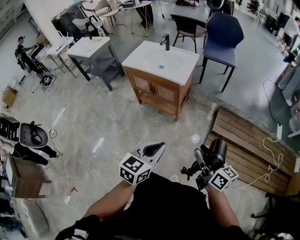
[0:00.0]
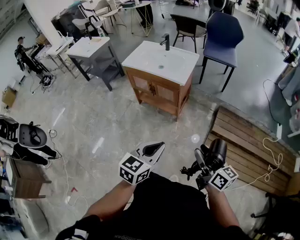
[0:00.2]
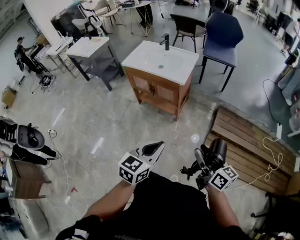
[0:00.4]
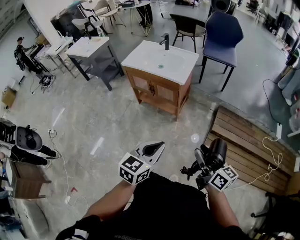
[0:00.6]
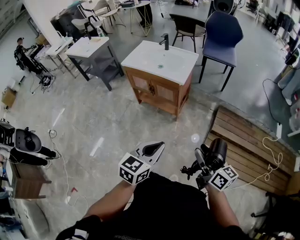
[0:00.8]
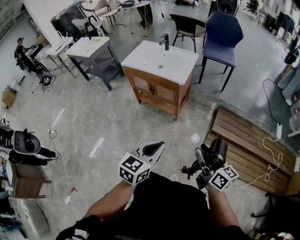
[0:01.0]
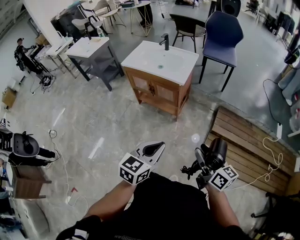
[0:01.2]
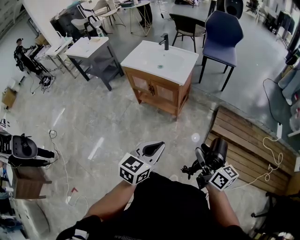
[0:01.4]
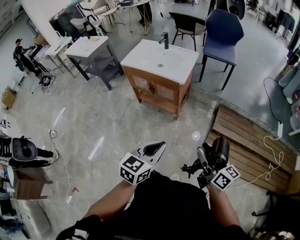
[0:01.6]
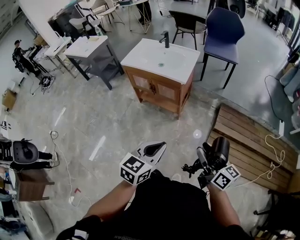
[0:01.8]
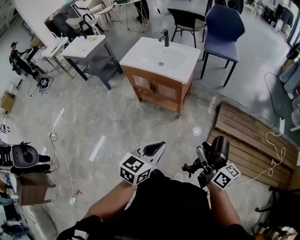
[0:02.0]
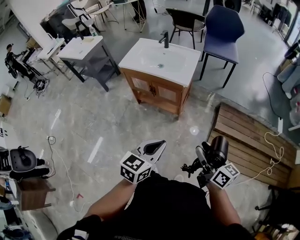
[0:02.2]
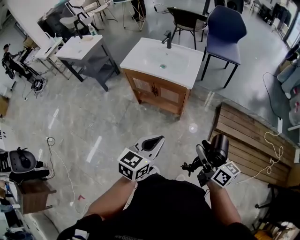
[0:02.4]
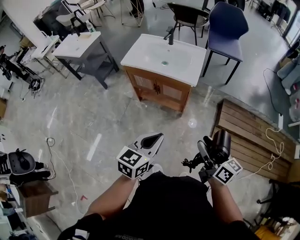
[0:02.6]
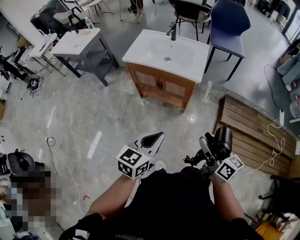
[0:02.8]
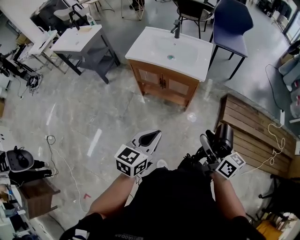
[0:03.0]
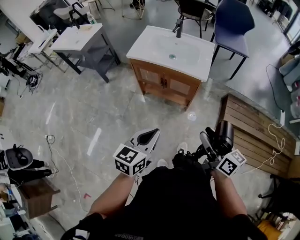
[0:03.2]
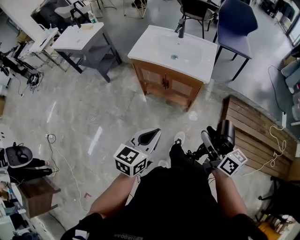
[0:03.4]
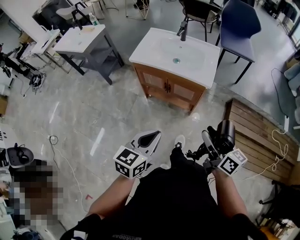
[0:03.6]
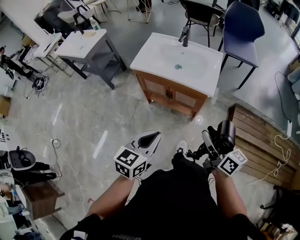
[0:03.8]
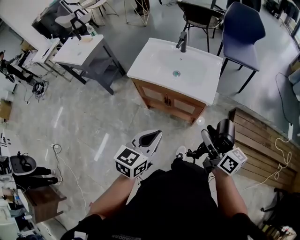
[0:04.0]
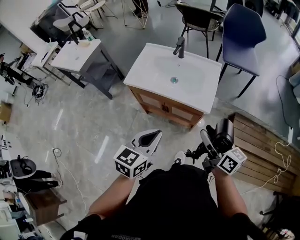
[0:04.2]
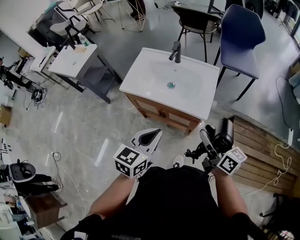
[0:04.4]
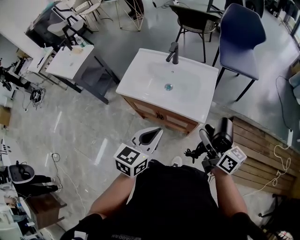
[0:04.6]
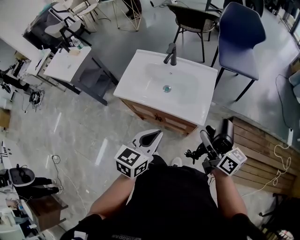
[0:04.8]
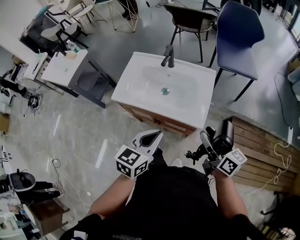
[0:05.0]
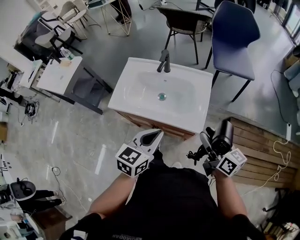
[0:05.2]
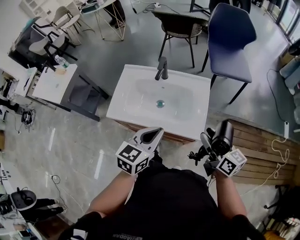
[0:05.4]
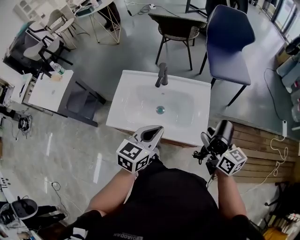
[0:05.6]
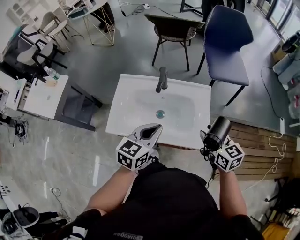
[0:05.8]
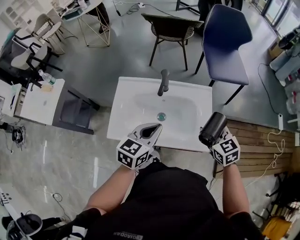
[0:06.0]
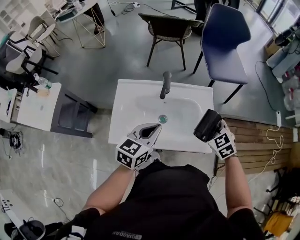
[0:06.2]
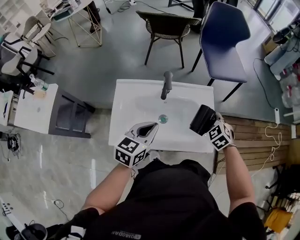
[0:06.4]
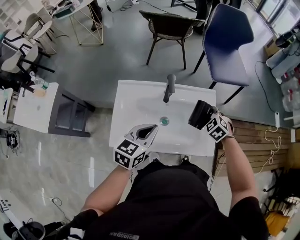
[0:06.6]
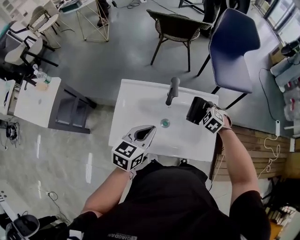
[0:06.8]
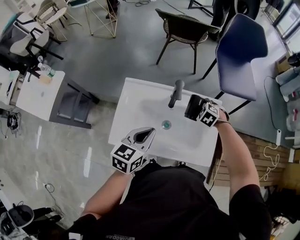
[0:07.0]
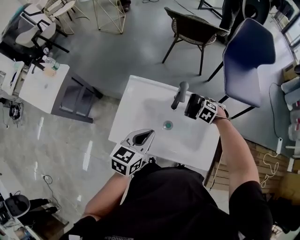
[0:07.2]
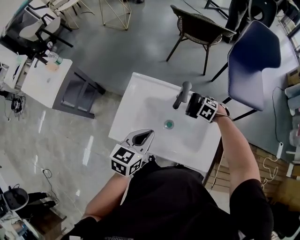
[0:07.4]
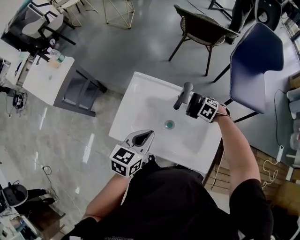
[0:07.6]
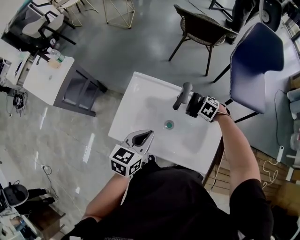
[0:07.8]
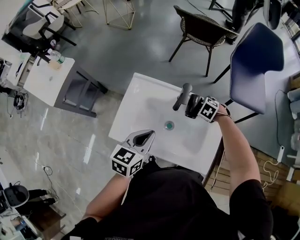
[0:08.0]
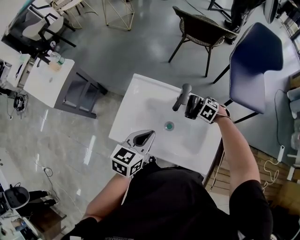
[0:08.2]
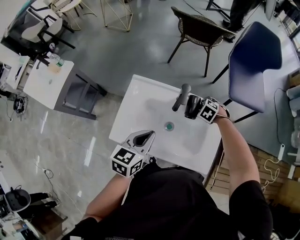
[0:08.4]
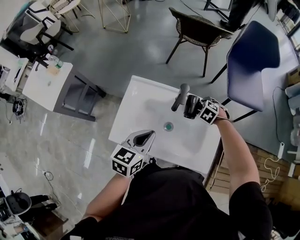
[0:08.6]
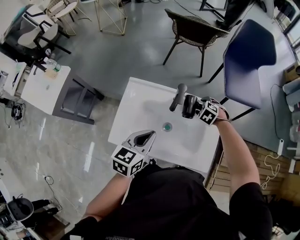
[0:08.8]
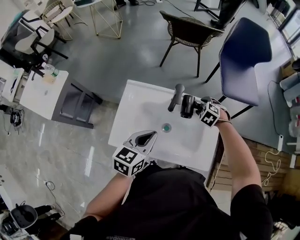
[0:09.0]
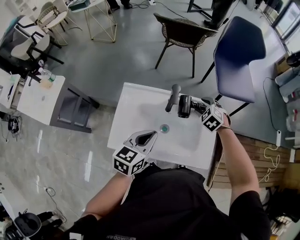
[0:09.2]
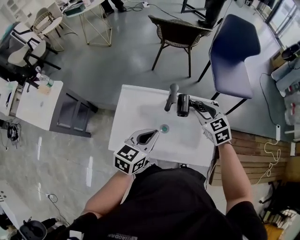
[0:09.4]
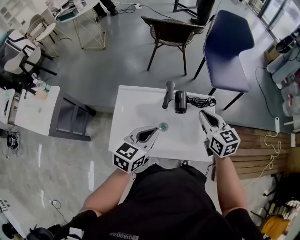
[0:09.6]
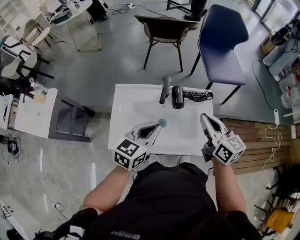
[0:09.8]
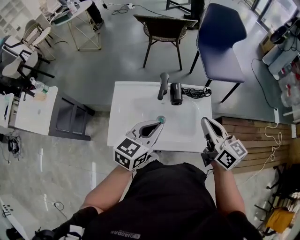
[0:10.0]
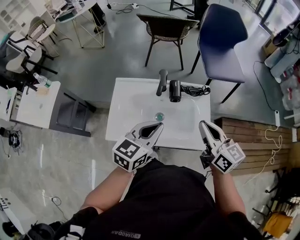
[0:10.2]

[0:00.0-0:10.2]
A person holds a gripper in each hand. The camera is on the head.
0:00.0 to 0:01.4: Both grippers stay about where they are.
0:01.4 to 0:03.0: The grippers both shift to the left and forward by some 25 cm.
0:03.0 to 0:04.4: Both grippers travel together forward, some 25 cm.
0:04.4 to 0:05.8: Both grippers travel together forward, about 25 cm. The right gripper turns by some 30 degrees.
0:05.8 to 0:07.2: The left gripper moves roughly 10 cm; the right gripper ends up about 35 cm from where it was, and tips its fingers downward by approximately 50 degrees.
0:07.2 to 0:08.8: The right gripper opens.
0:08.8 to 0:10.2: The left gripper goes about 10 cm to the right and upward. The right gripper goes about 35 cm upward and backward, tips its fingers upward by about 60 degrees, and closes up.

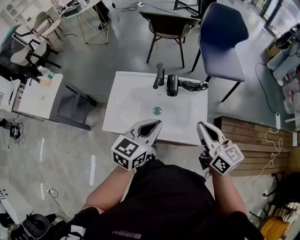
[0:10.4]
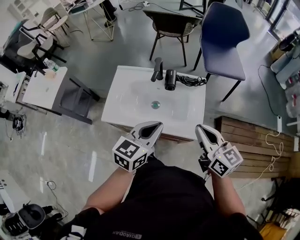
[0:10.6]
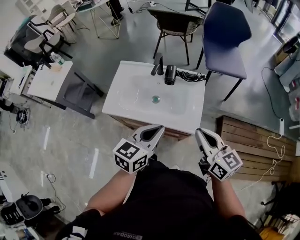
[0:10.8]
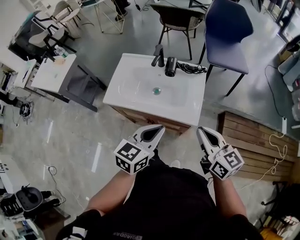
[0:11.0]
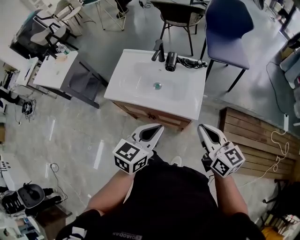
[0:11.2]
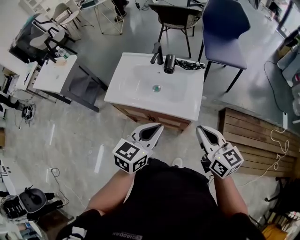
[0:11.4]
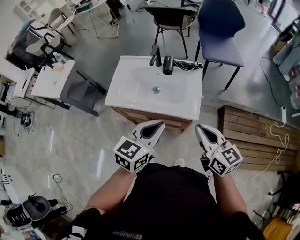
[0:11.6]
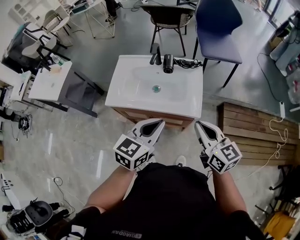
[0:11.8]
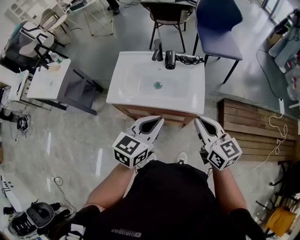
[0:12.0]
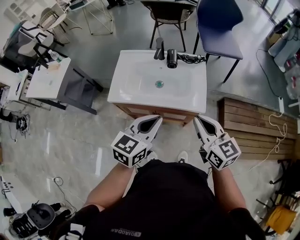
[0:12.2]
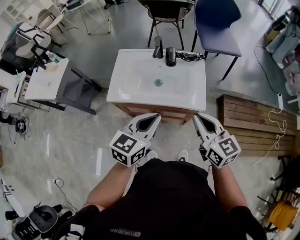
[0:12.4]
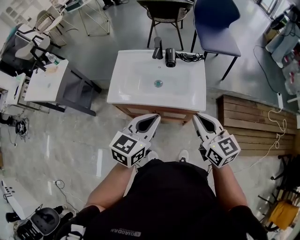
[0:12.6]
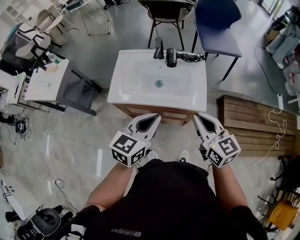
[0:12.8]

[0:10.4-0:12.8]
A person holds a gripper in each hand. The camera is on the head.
0:10.4 to 0:11.6: The right gripper shifts about 15 cm backward, while the left gripper is displaced backward and to the right by about 20 cm.
0:11.6 to 0:12.8: The grippers both shift to the left by roughly 10 cm.

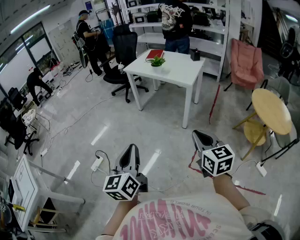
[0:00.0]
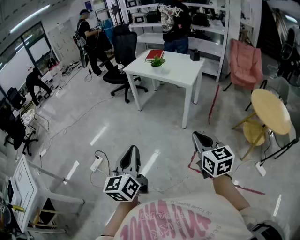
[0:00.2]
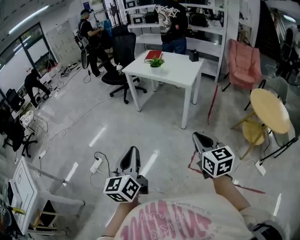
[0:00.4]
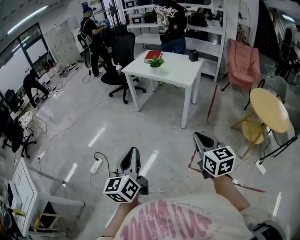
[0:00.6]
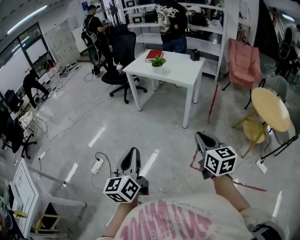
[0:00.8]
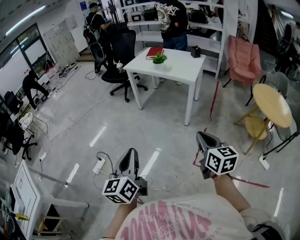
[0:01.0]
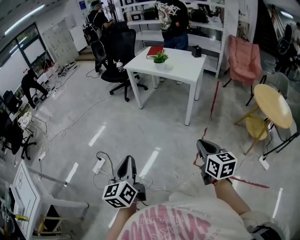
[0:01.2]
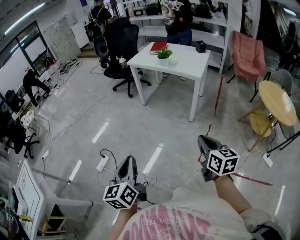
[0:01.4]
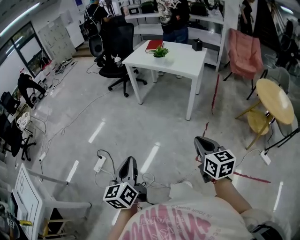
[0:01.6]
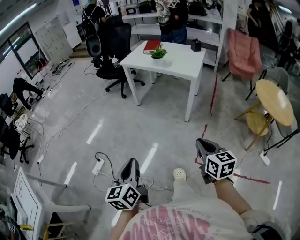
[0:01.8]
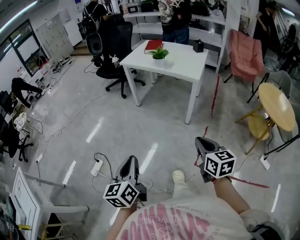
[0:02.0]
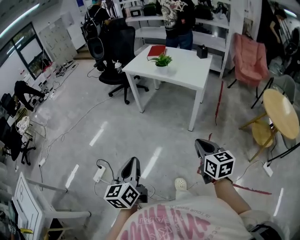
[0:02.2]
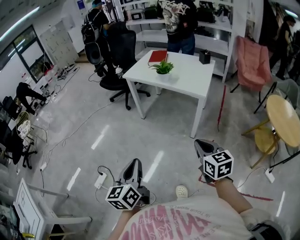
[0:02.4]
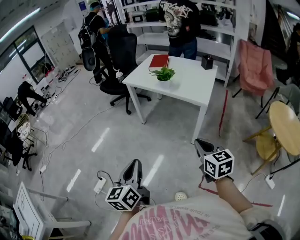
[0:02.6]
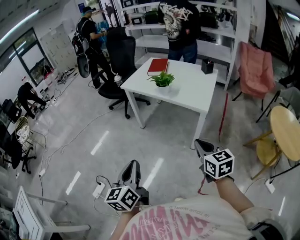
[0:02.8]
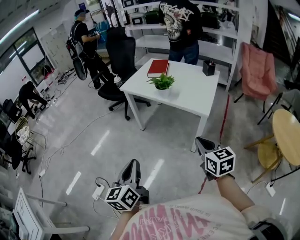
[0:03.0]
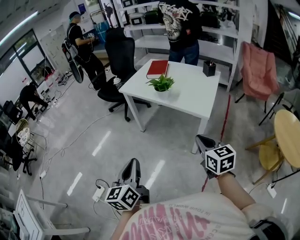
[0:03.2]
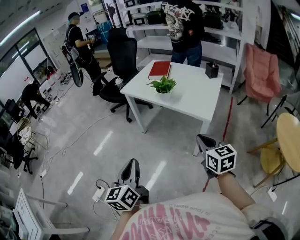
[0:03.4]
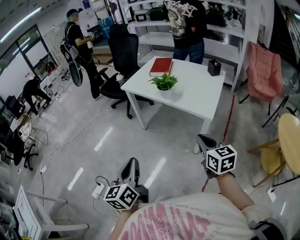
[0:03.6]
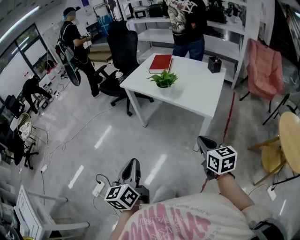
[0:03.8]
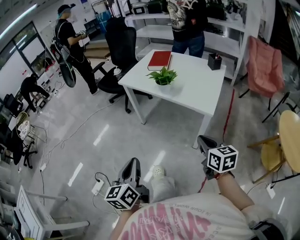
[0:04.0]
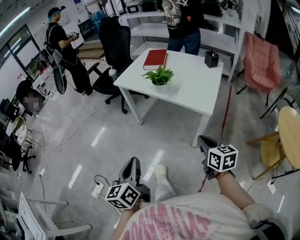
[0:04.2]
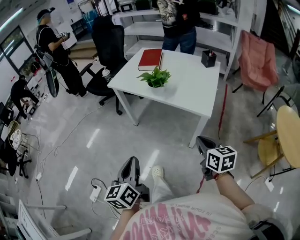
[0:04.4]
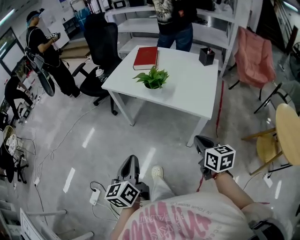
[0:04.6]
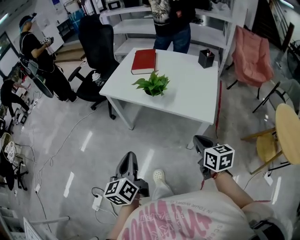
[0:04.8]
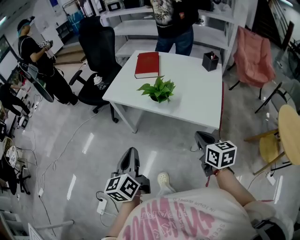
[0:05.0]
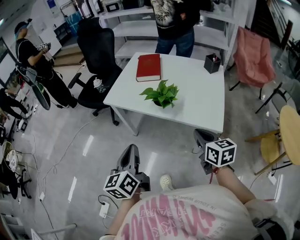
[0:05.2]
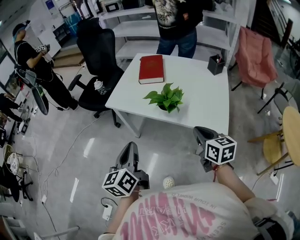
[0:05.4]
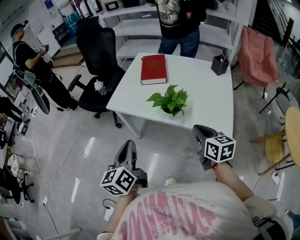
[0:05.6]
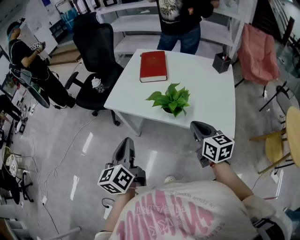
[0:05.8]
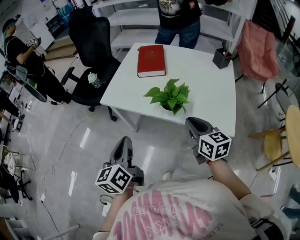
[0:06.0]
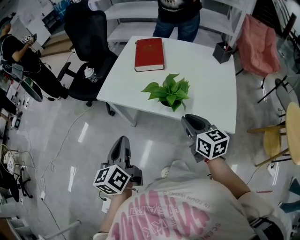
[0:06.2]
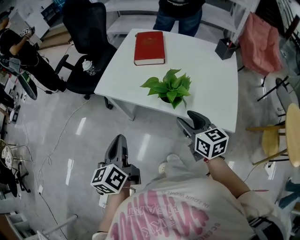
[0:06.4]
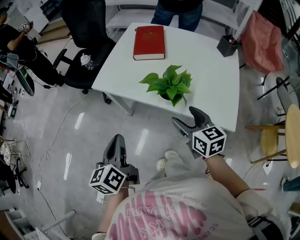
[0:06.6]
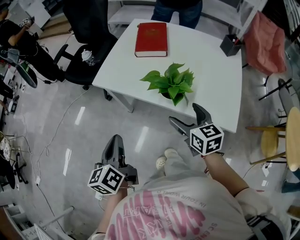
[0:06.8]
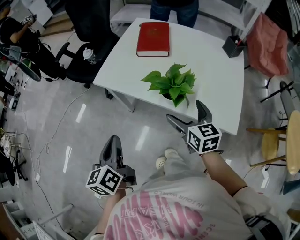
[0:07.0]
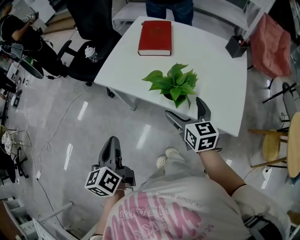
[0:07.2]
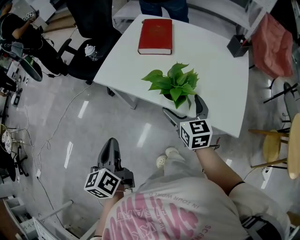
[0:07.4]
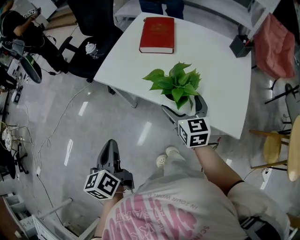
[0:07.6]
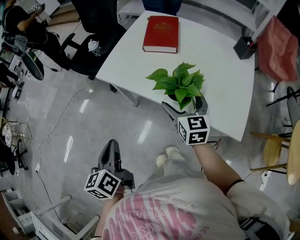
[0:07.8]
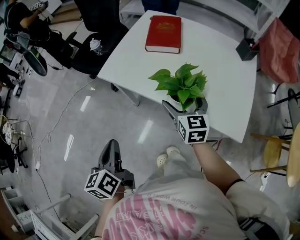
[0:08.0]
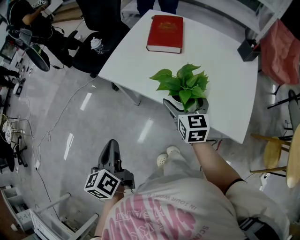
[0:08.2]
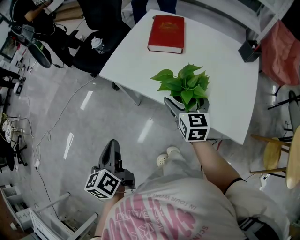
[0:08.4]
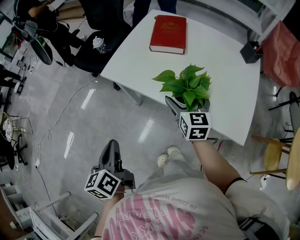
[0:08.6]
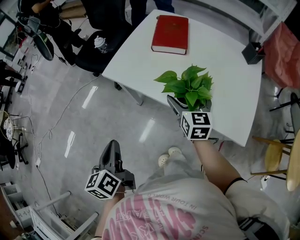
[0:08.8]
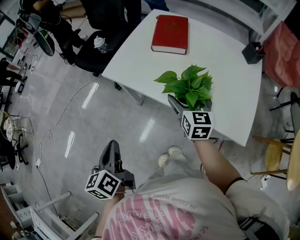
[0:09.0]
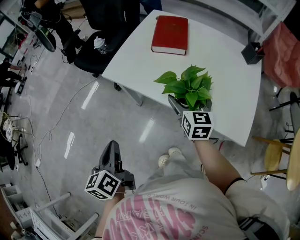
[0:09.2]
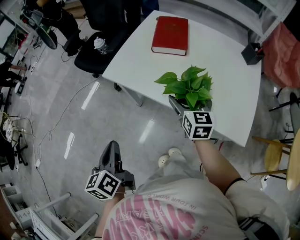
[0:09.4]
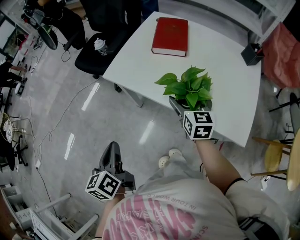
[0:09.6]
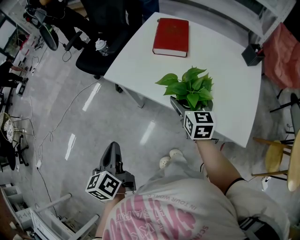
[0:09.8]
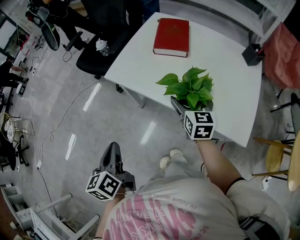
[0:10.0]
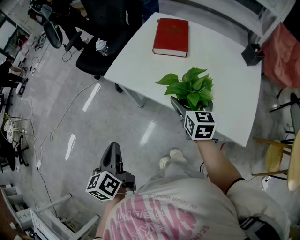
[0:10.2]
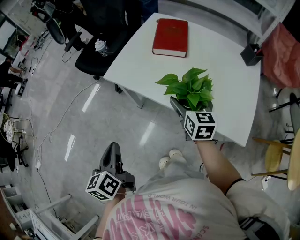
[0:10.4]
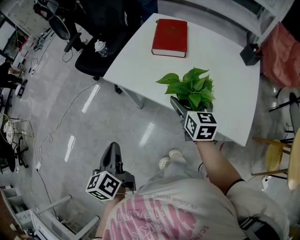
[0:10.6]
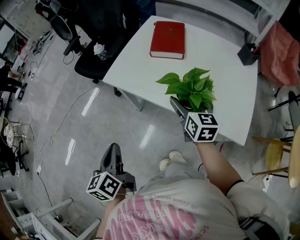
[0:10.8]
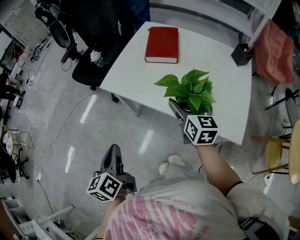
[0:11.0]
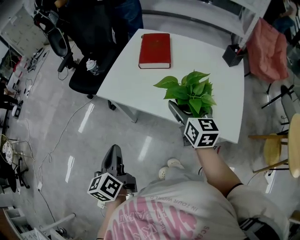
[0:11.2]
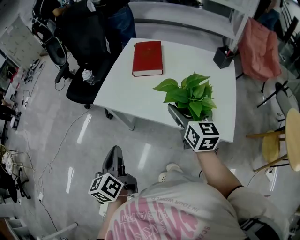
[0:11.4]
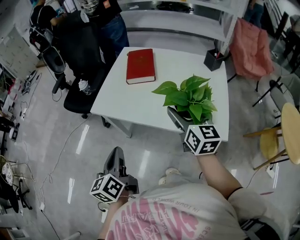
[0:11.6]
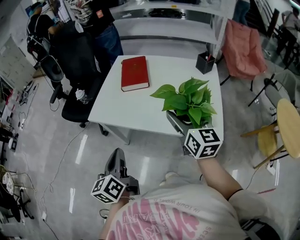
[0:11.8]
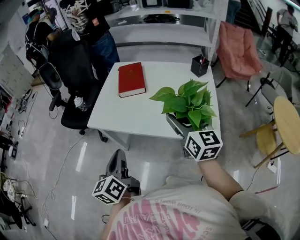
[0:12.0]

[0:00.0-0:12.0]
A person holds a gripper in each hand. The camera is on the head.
0:00.0 to 0:01.6: Both grippers travel together to the left and downward, about 15 cm.
0:01.6 to 0:03.0: The grippers both shift forward by about 35 cm.
0:03.0 to 0:04.4: The right gripper travels forward and downward by approximately 15 cm. The left gripper is displaced forward by about 15 cm.
0:04.4 to 0:06.0: The two grippers go some 35 cm forward.
0:06.0 to 0:07.6: The right gripper heads forward and downward, covering roughly 10 cm, and opens up. Meanwhile the left gripper heads downward, covering approximately 5 cm.
0:07.6 to 0:09.0: The right gripper is displaced forward by about 5 cm.
0:09.0 to 0:10.4: The grippers stay close to where they were, moving slightly.
0:10.4 to 0:12.0: The left gripper goes roughly 15 cm to the right and upward, and rotates about 20 degrees, while the right gripper goes approximately 25 cm upward, backward and to the right, and changes its angle by some 30 degrees.
